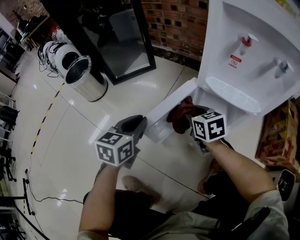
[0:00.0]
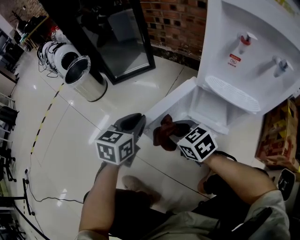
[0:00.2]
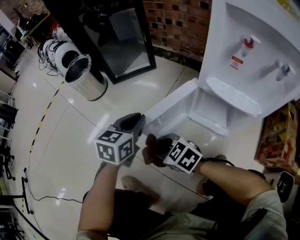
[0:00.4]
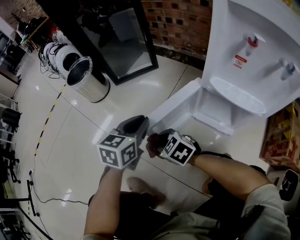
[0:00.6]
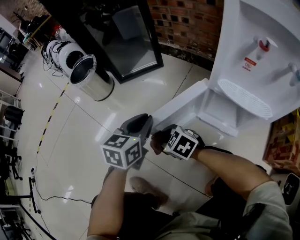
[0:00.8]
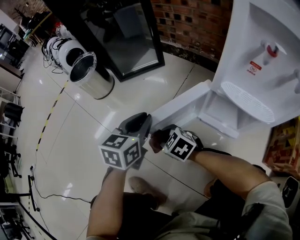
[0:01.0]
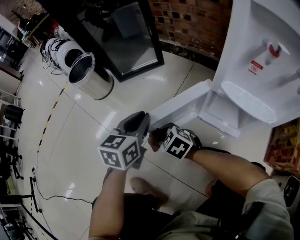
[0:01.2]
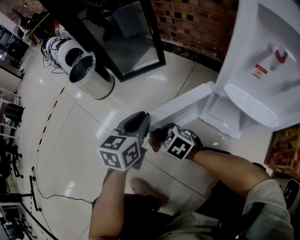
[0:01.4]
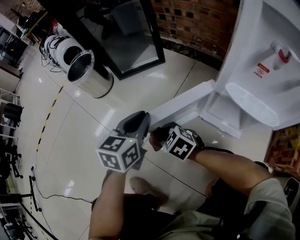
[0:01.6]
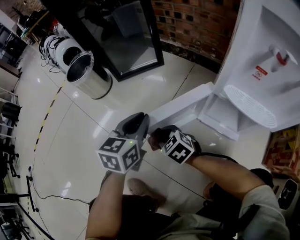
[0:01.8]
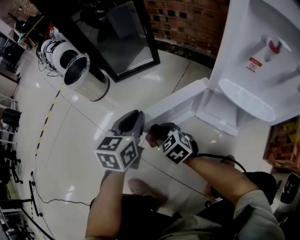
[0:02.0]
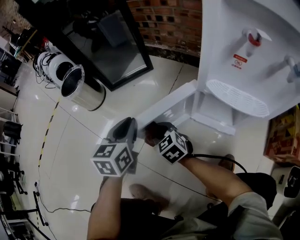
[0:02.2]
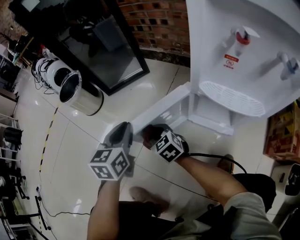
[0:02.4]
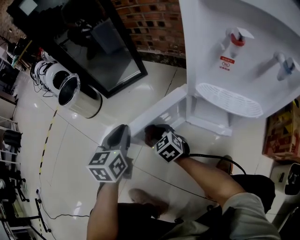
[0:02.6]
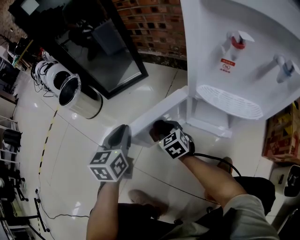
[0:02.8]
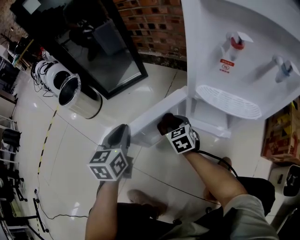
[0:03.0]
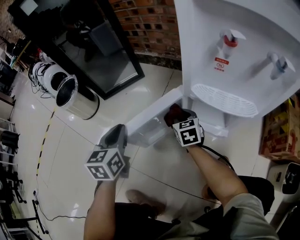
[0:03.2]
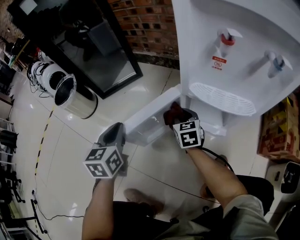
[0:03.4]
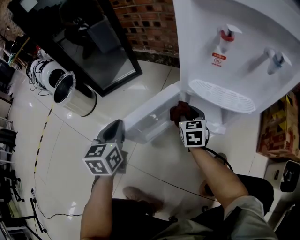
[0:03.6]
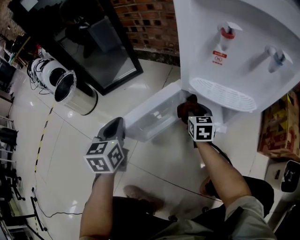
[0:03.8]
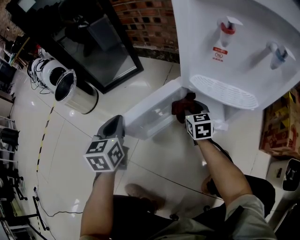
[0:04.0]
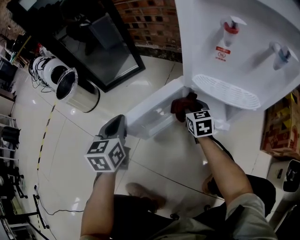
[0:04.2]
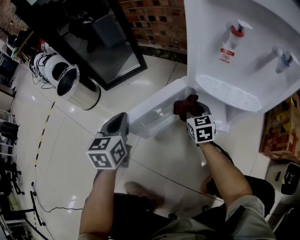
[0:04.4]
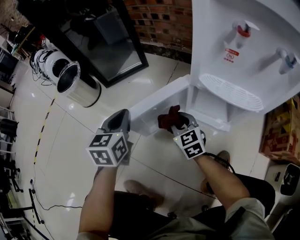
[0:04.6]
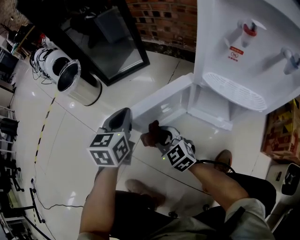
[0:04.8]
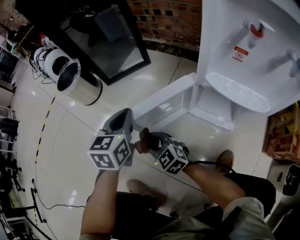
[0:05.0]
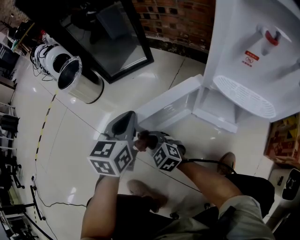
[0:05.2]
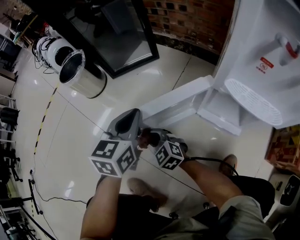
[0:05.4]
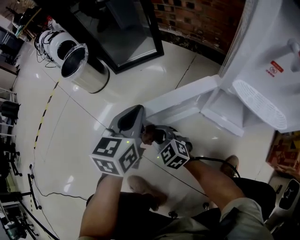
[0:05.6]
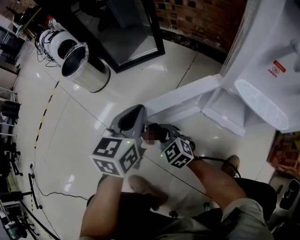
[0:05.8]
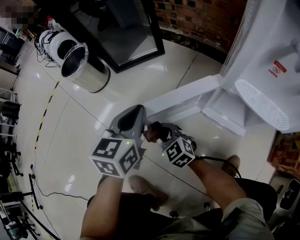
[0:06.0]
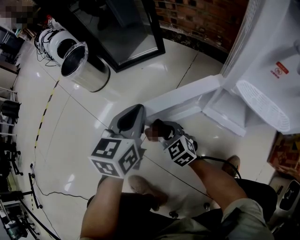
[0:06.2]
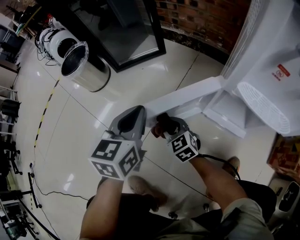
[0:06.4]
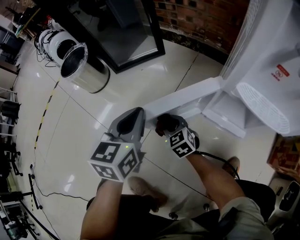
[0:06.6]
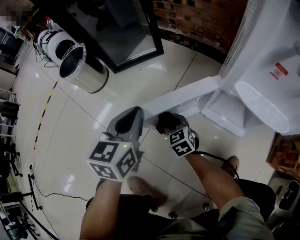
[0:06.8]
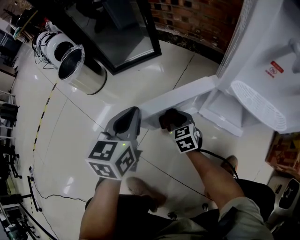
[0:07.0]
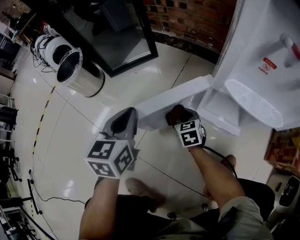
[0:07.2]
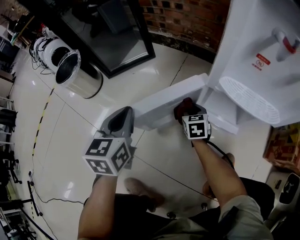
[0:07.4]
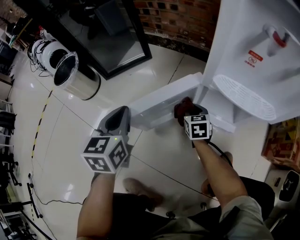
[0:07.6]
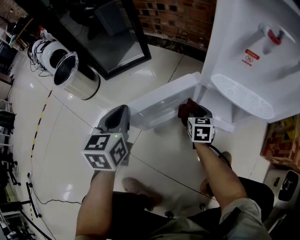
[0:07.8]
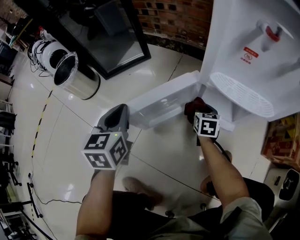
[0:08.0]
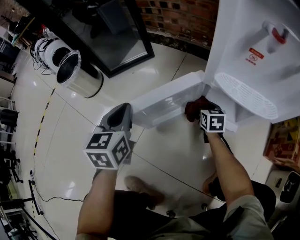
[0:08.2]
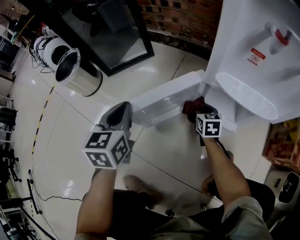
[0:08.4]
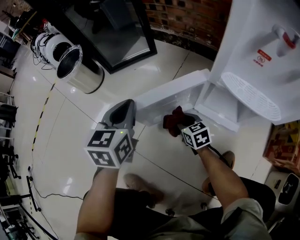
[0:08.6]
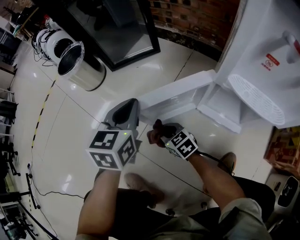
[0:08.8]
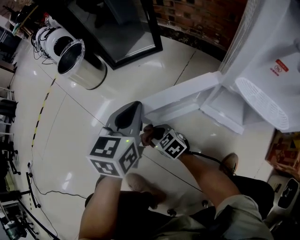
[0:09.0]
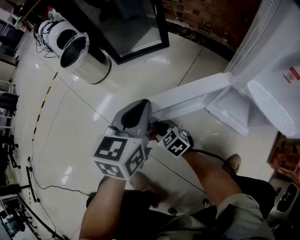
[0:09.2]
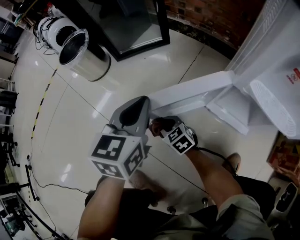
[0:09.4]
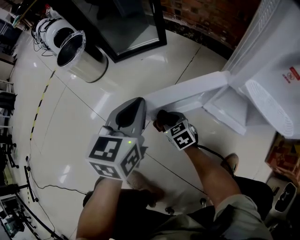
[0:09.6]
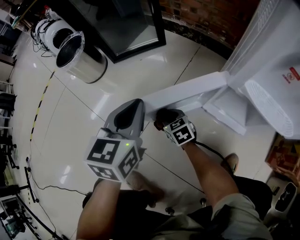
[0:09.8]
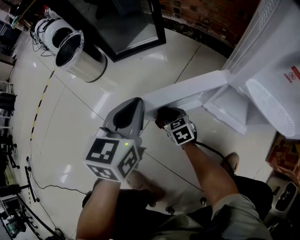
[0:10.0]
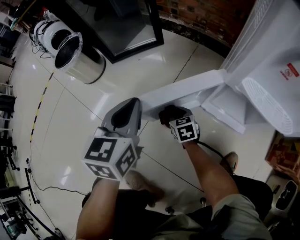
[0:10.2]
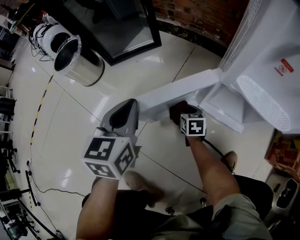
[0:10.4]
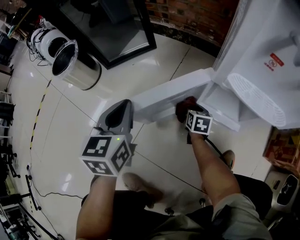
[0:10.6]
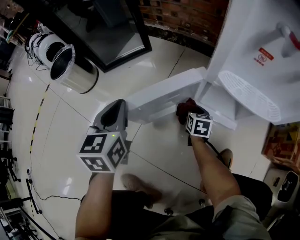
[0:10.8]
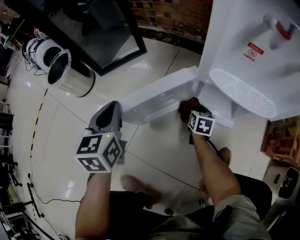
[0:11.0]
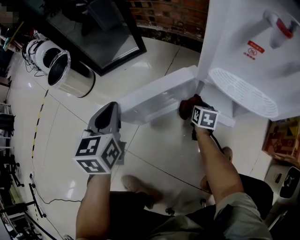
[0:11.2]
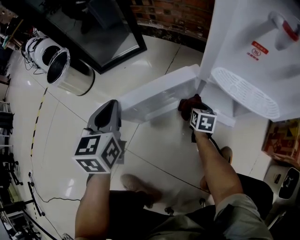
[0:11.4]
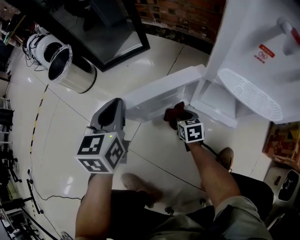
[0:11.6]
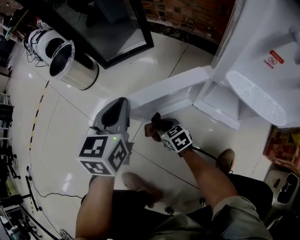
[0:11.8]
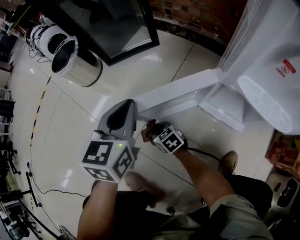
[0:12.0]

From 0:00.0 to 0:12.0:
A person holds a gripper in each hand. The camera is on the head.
From 0:00.0 to 0:01.6: The left gripper heads forward, covering approximately 5 cm. Meanwhile the right gripper moves to the left, roughly 20 cm, and changes its angle by approximately 40 degrees.
From 0:01.6 to 0:03.0: The right gripper travels to the right and forward by some 15 cm, and turns by roughly 40 degrees.
From 0:03.0 to 0:04.4: The right gripper goes some 10 cm to the right.
From 0:04.4 to 0:06.0: The right gripper moves to the left, roughly 25 cm, and swivels about 40 degrees.
From 0:06.0 to 0:07.6: The right gripper shifts about 25 cm to the right, and turns by approximately 50 degrees.
From 0:07.6 to 0:09.0: The right gripper shifts by approximately 25 cm, and swivels some 50 degrees.
From 0:09.0 to 0:10.4: The right gripper moves to the right, roughly 20 cm, and changes its angle by roughly 50 degrees.
From 0:10.4 to 0:12.0: The right gripper shifts by roughly 20 cm, and turns by about 40 degrees.

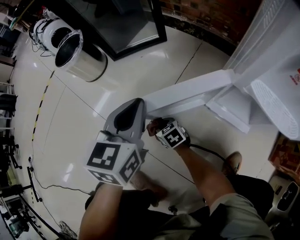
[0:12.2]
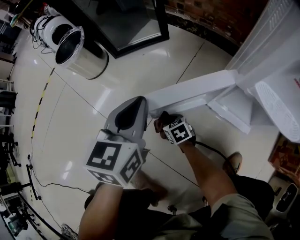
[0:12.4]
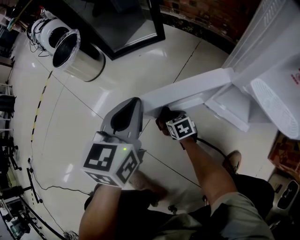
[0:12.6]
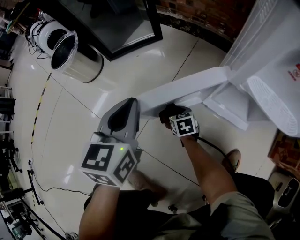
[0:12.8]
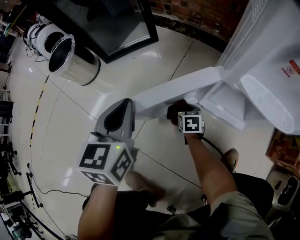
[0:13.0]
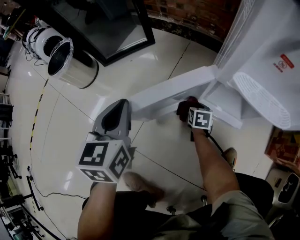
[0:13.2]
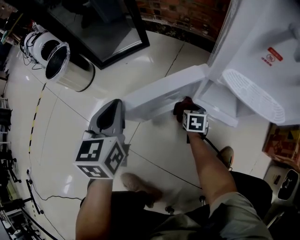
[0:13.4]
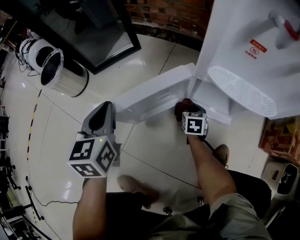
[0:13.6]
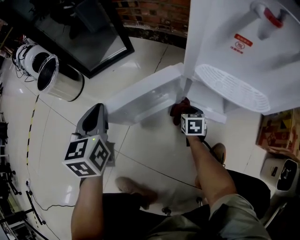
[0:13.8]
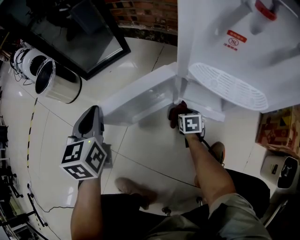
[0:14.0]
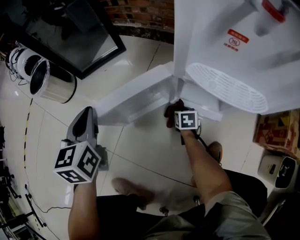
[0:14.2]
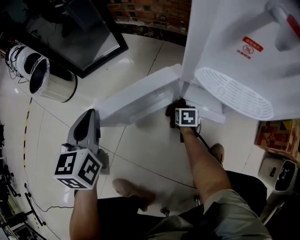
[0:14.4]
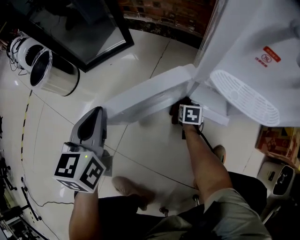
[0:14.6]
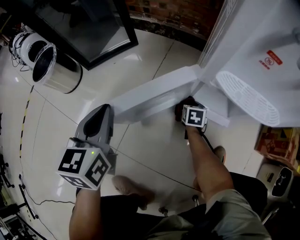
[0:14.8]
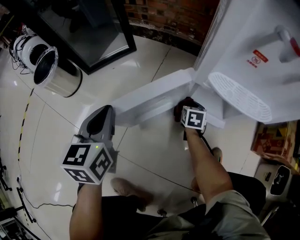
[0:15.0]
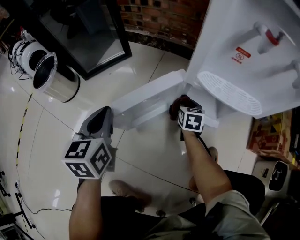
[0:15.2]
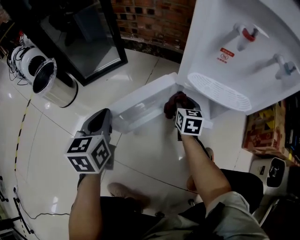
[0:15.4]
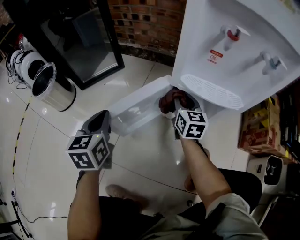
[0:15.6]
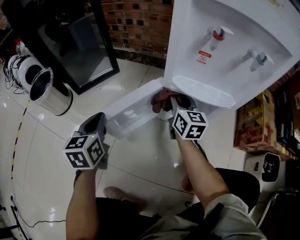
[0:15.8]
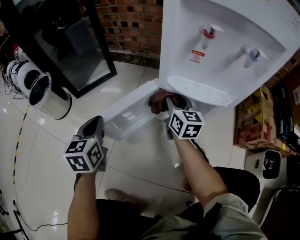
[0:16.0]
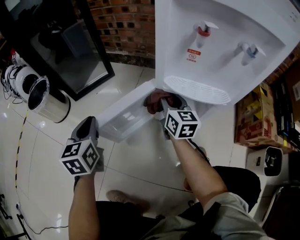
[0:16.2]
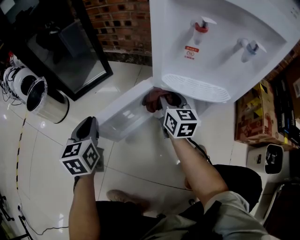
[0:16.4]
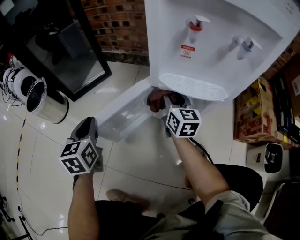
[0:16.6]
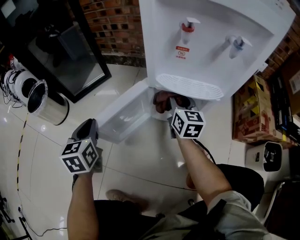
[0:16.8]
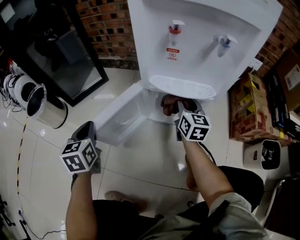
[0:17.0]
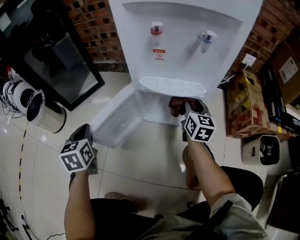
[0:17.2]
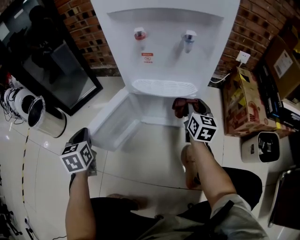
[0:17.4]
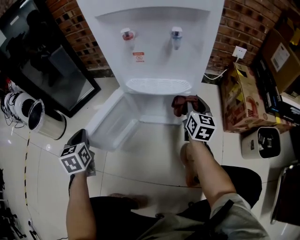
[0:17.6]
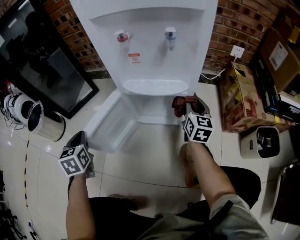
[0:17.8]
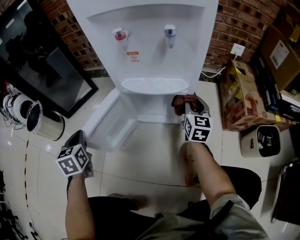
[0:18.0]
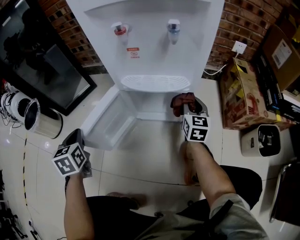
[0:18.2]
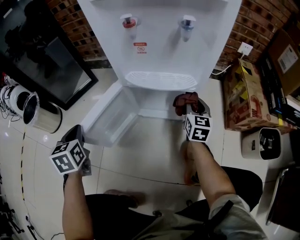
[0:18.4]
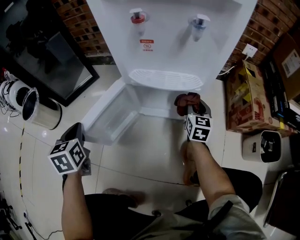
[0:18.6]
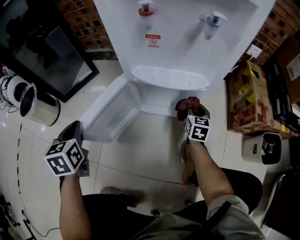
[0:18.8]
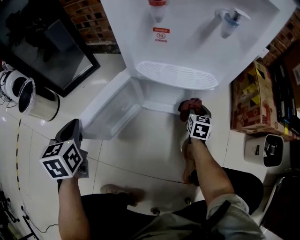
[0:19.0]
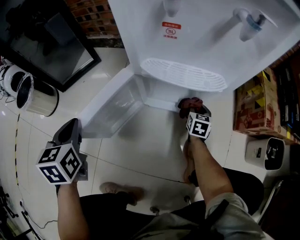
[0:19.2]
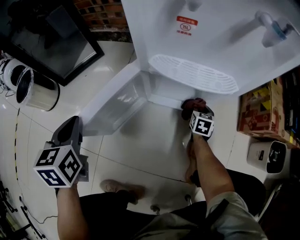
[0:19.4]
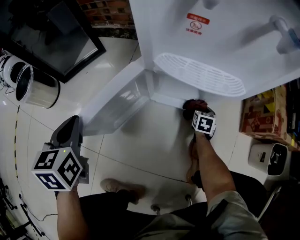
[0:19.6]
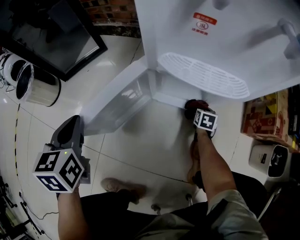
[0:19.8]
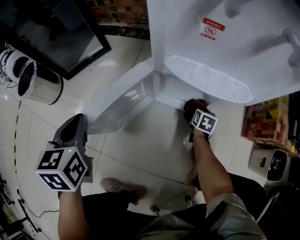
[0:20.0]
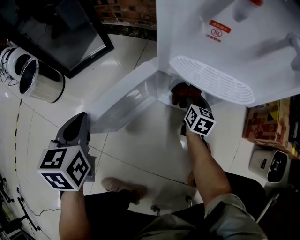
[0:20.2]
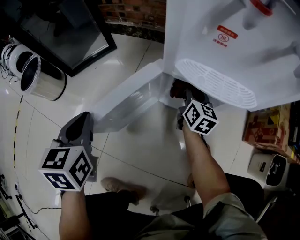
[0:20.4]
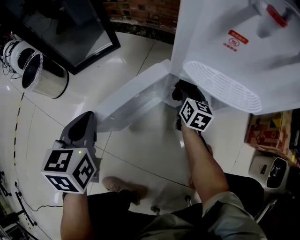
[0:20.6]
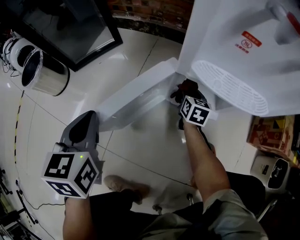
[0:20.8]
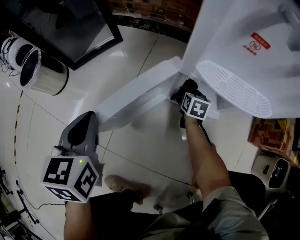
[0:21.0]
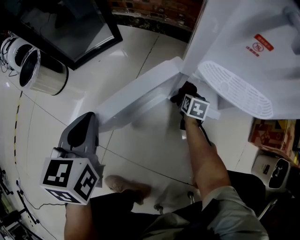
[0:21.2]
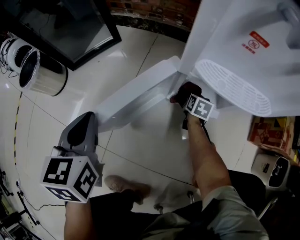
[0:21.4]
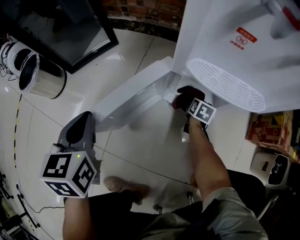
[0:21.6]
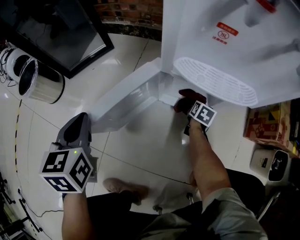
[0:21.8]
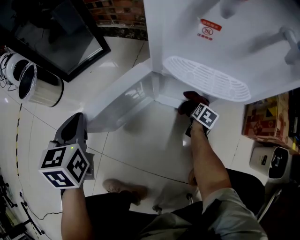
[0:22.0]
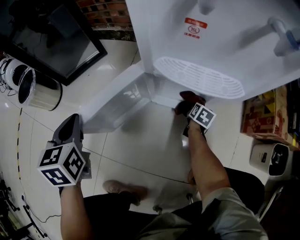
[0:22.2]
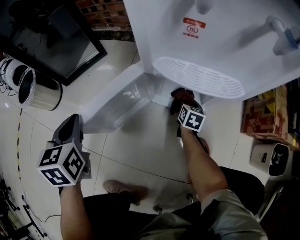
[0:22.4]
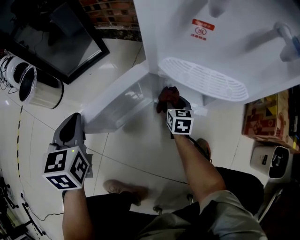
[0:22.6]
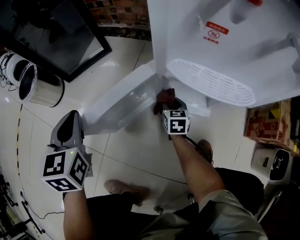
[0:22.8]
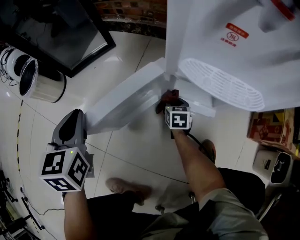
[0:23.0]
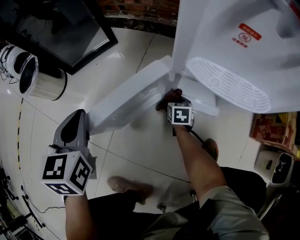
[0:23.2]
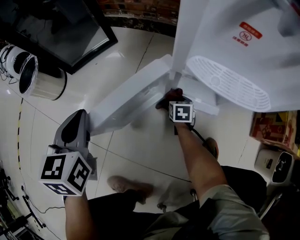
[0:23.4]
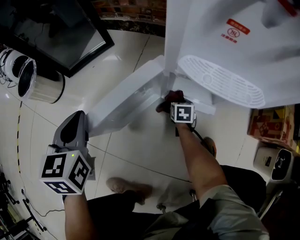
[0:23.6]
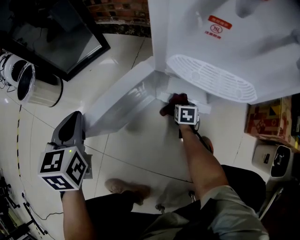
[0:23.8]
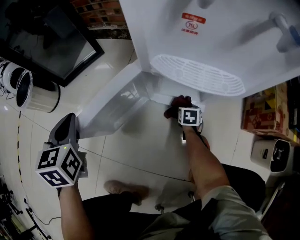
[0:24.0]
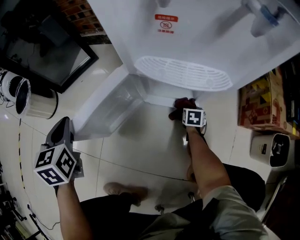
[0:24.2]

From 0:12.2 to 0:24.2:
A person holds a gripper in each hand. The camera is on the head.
From 0:12.2 to 0:13.8: The right gripper ends up some 30 cm from where it was, and swivels about 50 degrees.
From 0:13.8 to 0:15.2: The right gripper travels upward by approximately 5 cm.
From 0:15.2 to 0:16.6: The right gripper heads upward, covering about 20 cm, and points its fingers approximately 30 degrees further upward.
From 0:16.6 to 0:18.2: The right gripper is displaced to the right by some 20 cm, and changes its angle by about 20 degrees.
From 0:18.2 to 0:19.8: The right gripper is displaced downward by some 25 cm, and points its fingers approximately 40 degrees further downward.
From 0:19.8 to 0:21.2: The right gripper shifts approximately 20 cm to the left and forward, and reaches approximately 20 cm upward, then returns.
From 0:21.2 to 0:22.6: The right gripper goes roughly 5 cm upward, and moves approximately 15 cm to the right and comes back.
From 0:22.6 to 0:24.2: The right gripper shifts approximately 20 cm to the right, downward and backward, and swivels roughly 30 degrees.
